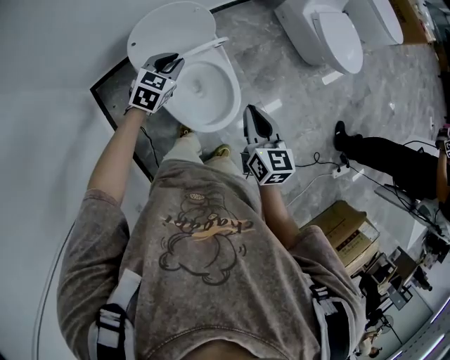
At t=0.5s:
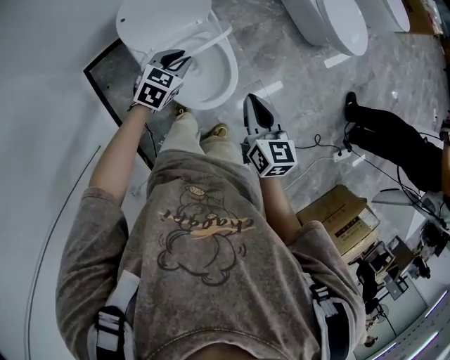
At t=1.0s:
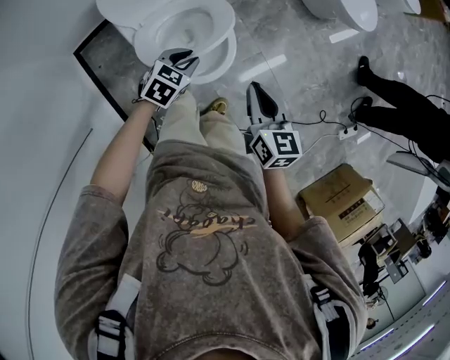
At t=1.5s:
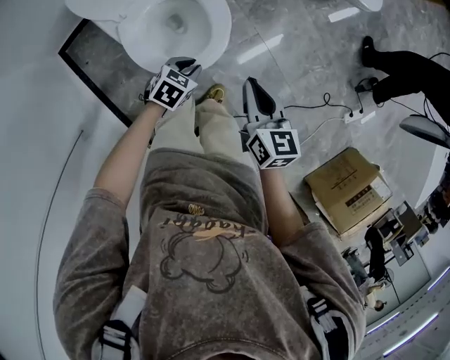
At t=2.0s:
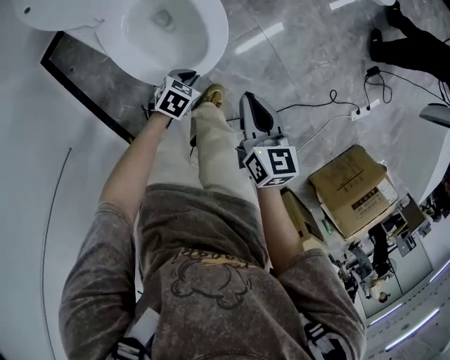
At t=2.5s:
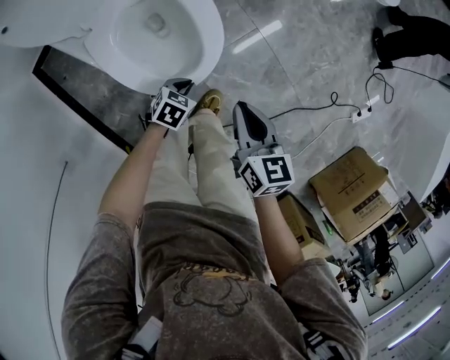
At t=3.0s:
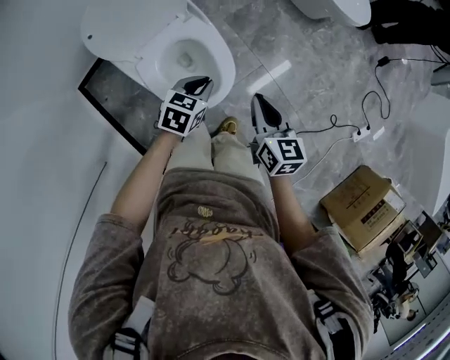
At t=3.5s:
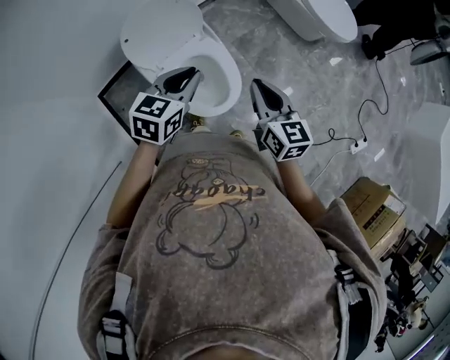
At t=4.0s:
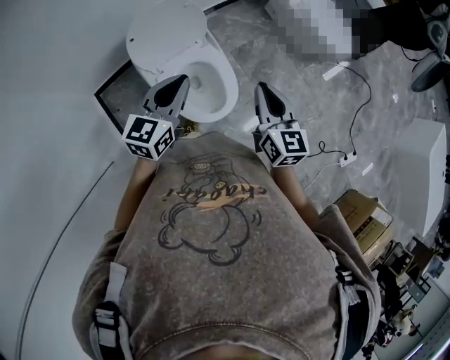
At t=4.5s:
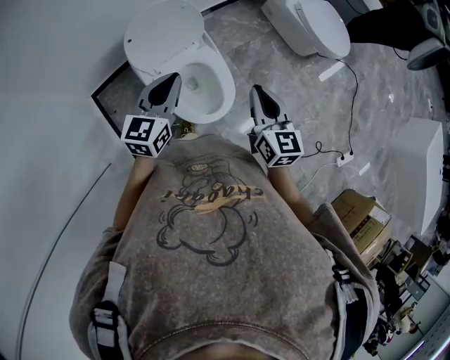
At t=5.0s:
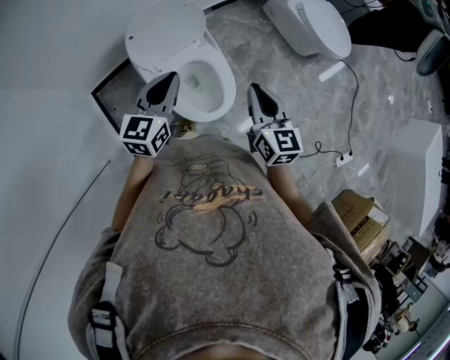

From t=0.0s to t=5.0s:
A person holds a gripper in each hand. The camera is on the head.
From t=0.0s to t=2.5s: The left gripper is displaced downward, to the right and backward by some 50 cm, and turns by roughly 40 degrees, while the right gripper heads downward, covering some 25 cm.
From t=2.5s to t=5.0s: The left gripper heads upward, covering approximately 50 cm, and tips its fingers upward by some 50 degrees, while the right gripper travels upward by some 35 cm, and turns by about 30 degrees.

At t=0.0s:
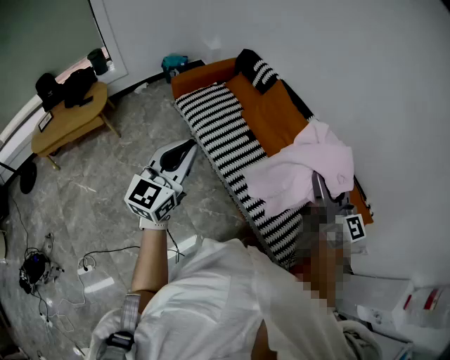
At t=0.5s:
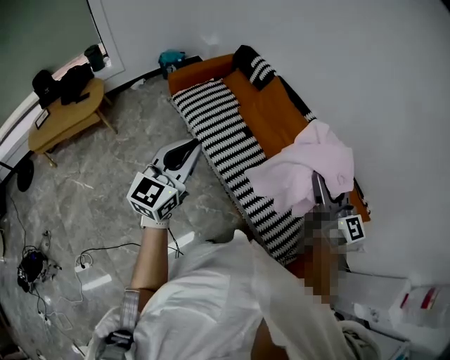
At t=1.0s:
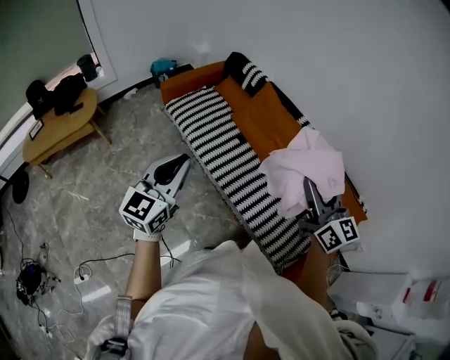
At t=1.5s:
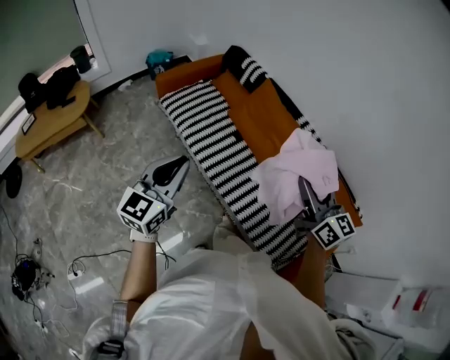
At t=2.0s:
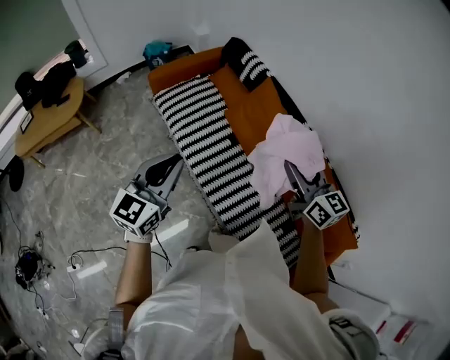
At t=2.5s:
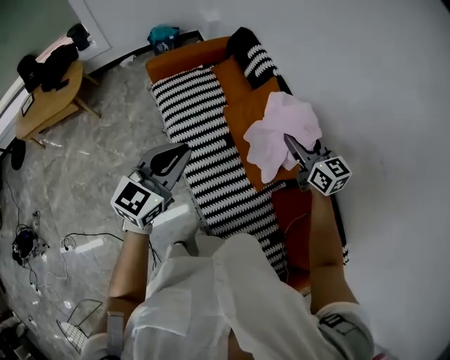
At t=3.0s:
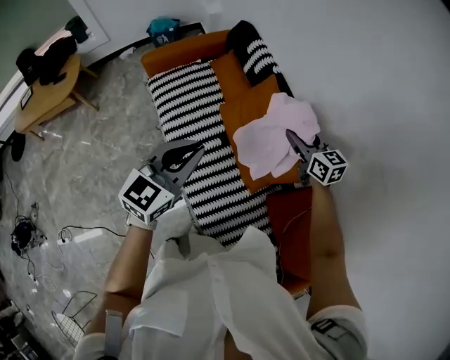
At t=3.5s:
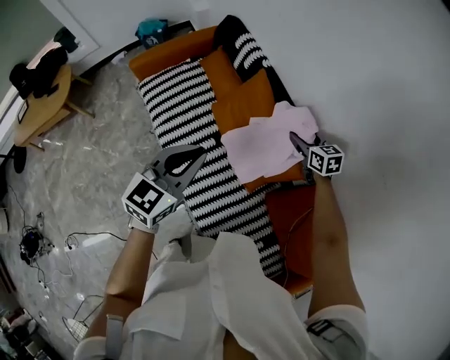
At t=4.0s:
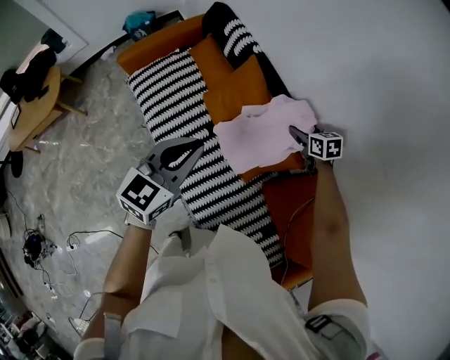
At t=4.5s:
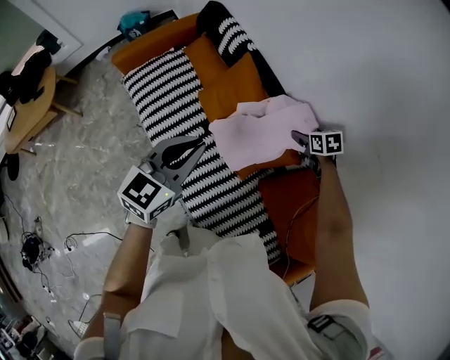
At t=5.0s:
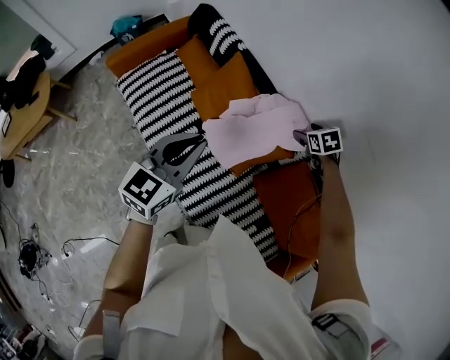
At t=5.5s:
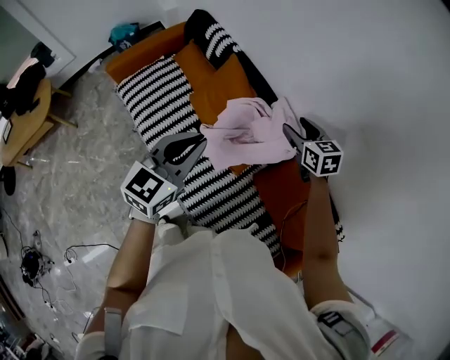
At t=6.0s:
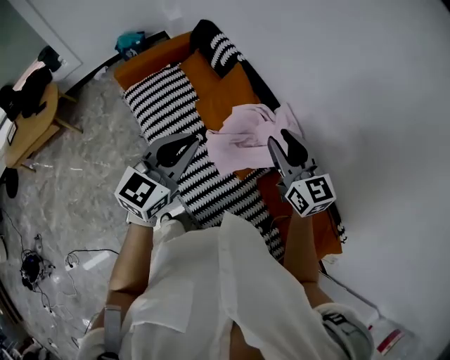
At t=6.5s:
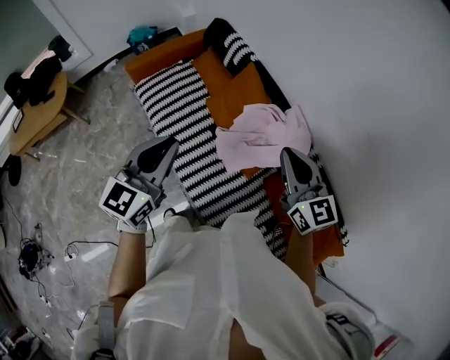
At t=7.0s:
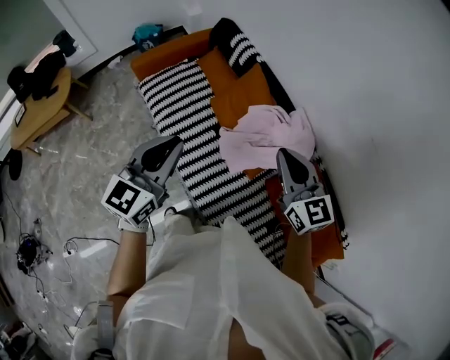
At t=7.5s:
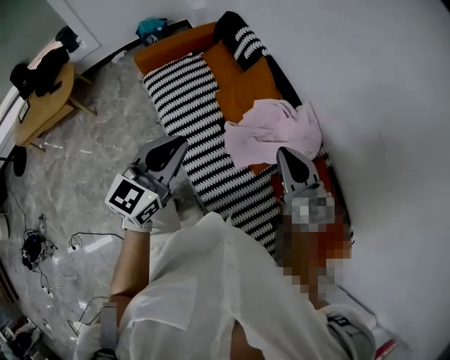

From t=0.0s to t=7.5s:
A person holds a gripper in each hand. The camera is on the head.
From t=0.0s to t=2.0s: The left gripper is displaced forward and to the right by roughly 15 cm, while the right gripper moves forward and downward, roughly 25 cm.
From t=2.0s to t=4.0s: The left gripper is displaced to the right and forward by approximately 30 cm; the right gripper travels downward, forward and to the right by about 50 cm, and points its fingers roughly 40 degrees further downward.
From t=4.0s to t=5.5s: The left gripper moves roughly 5 cm; the right gripper travels upward and backward by about 15 cm.
From t=5.5s to t=7.5s: The right gripper is displaced to the left, backward and upward by roughly 25 cm, swivels approximately 30 degrees, and closes its fingers; the left gripper shifts some 15 cm to the left and backward.

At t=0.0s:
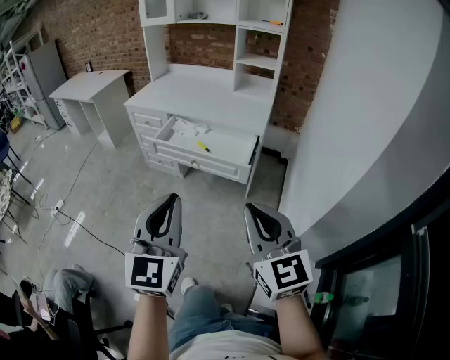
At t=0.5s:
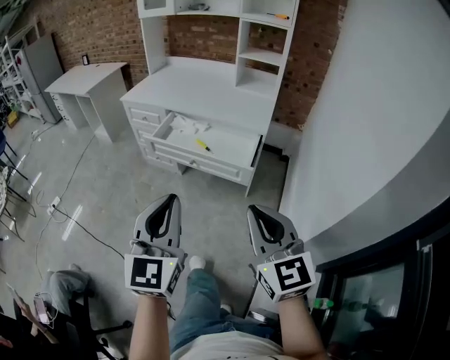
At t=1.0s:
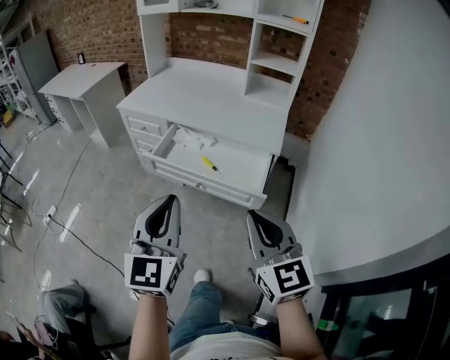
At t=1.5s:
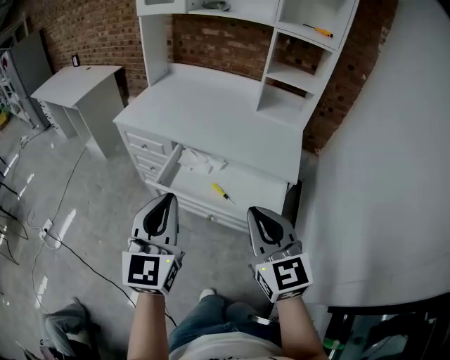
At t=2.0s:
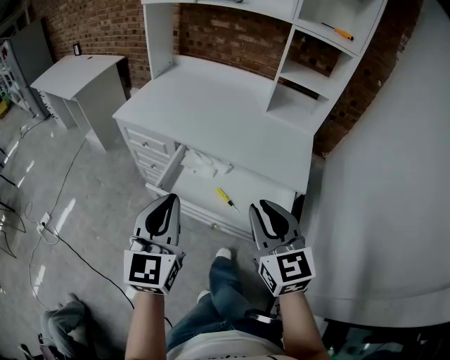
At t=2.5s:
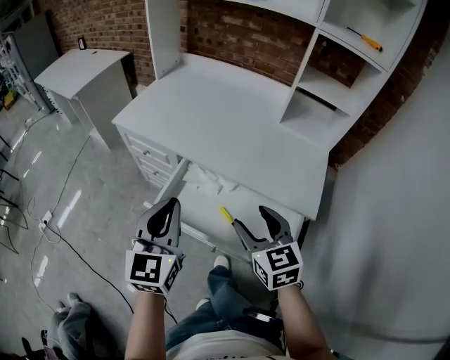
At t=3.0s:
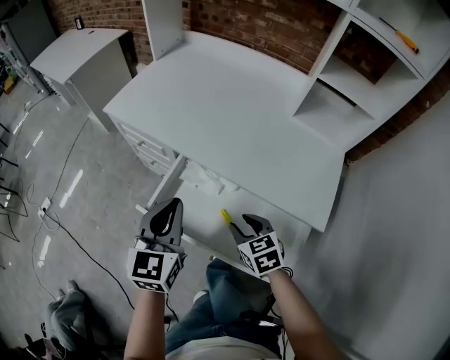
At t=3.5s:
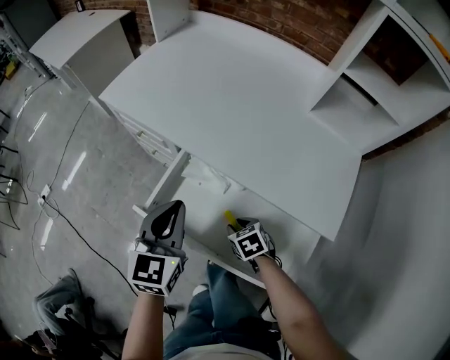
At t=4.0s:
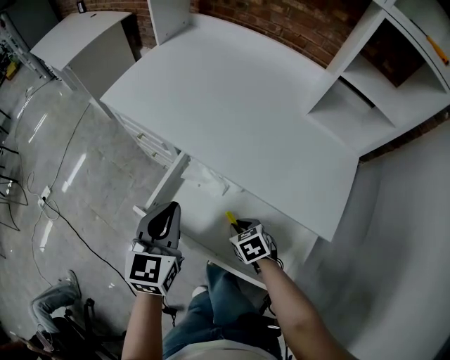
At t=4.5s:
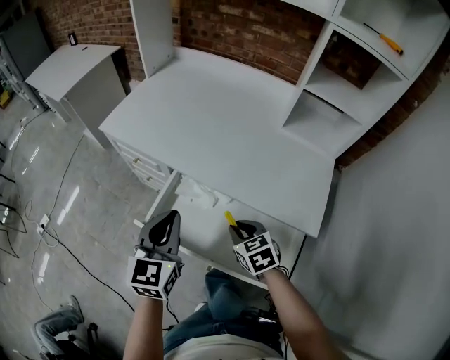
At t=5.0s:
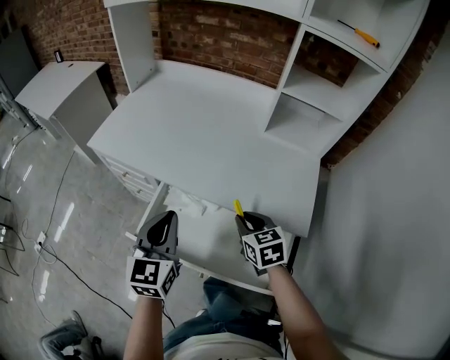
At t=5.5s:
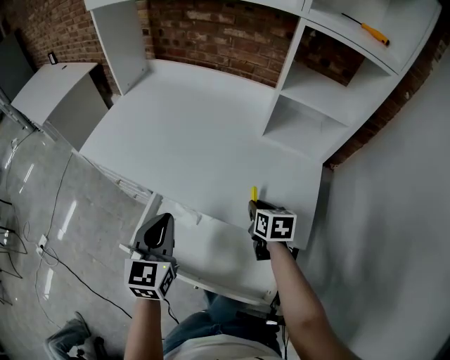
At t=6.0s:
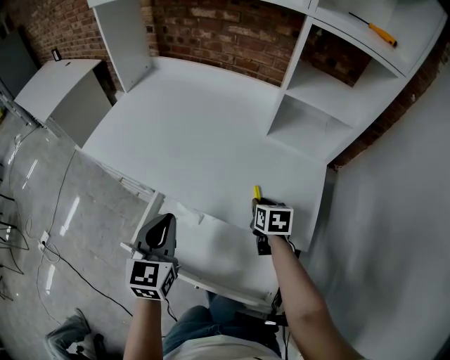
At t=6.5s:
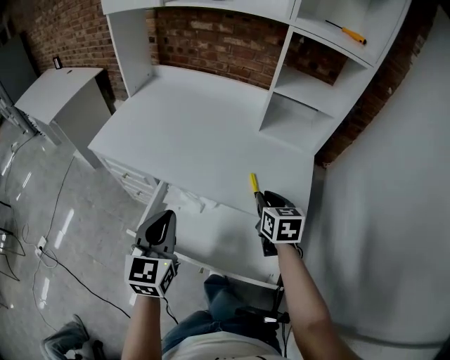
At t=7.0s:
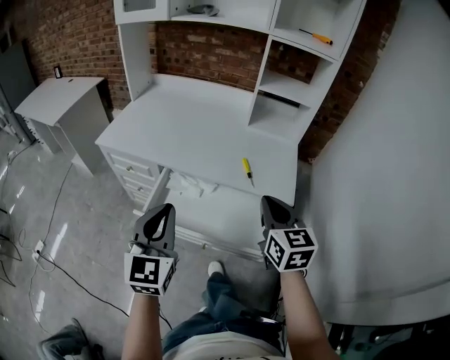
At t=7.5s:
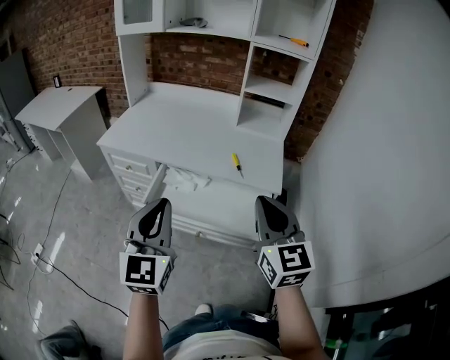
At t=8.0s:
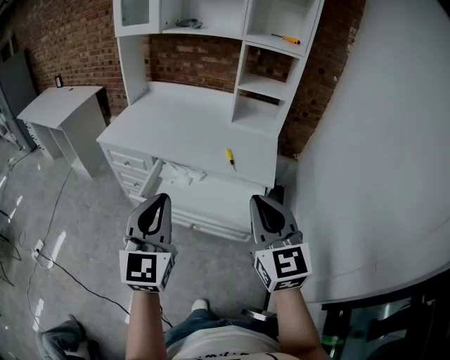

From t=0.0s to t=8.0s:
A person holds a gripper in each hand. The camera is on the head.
From t=0.0s to t=2.0s: Both grippers are carried forward, about 50 cm.
From t=2.0s to t=4.0s: The right gripper goes approximately 40 cm downward and forward, tips its fingers downward by approximately 50 degrees, and opens, then closes once more. The left gripper goes approximately 25 cm forward and downward, and rotates approximately 20 degrees.
From t=4.0s to t=6.0s: The right gripper travels to the right, forward and upward by approximately 25 cm, and swivels roughly 40 degrees; the left gripper moves to the right, roughly 10 cm.
From t=6.0s to t=8.0s: The grippers both shift backward and upward by approximately 50 cm. The left gripper turns by some 20 degrees. Meanwhile the right gripper tips its fingers upward by approximately 50 degrees.

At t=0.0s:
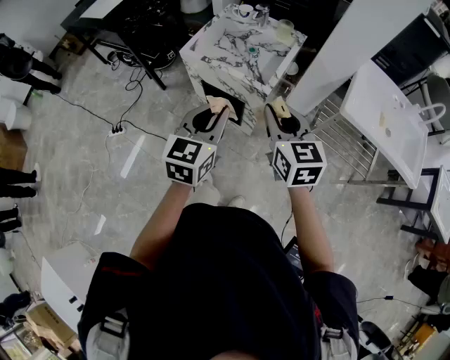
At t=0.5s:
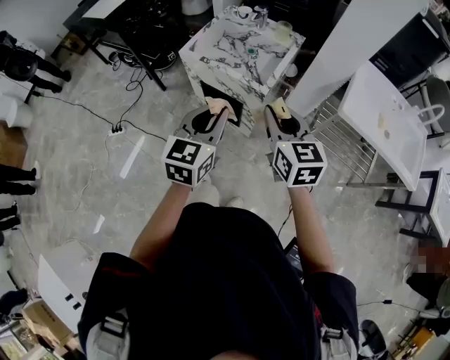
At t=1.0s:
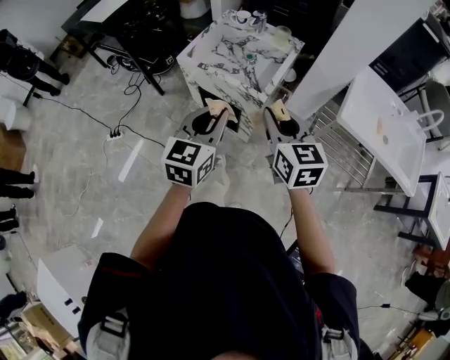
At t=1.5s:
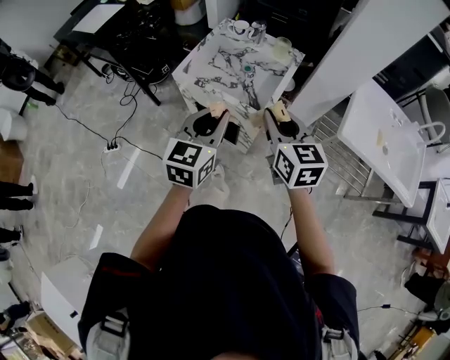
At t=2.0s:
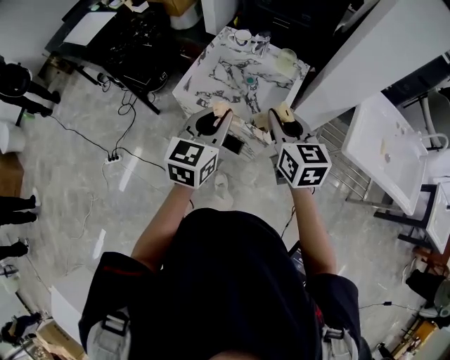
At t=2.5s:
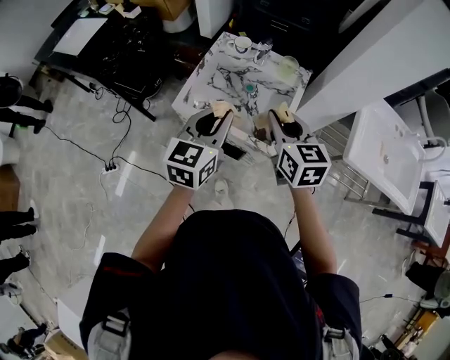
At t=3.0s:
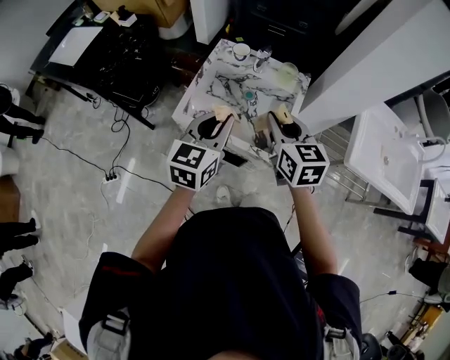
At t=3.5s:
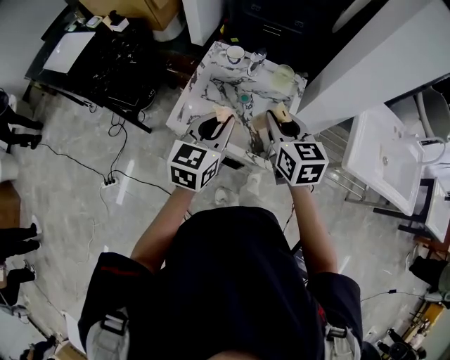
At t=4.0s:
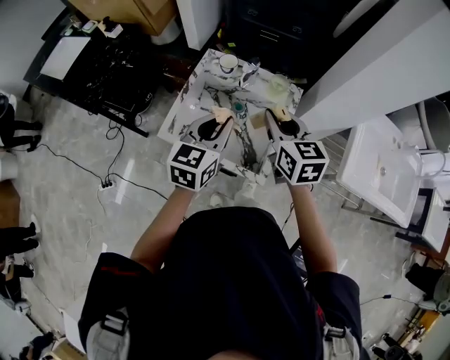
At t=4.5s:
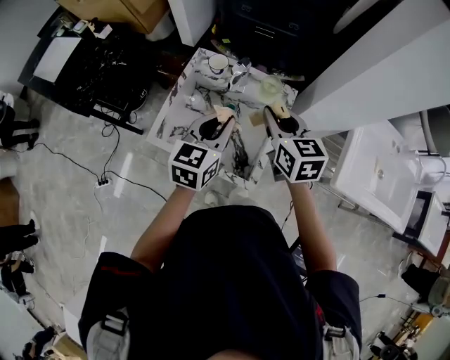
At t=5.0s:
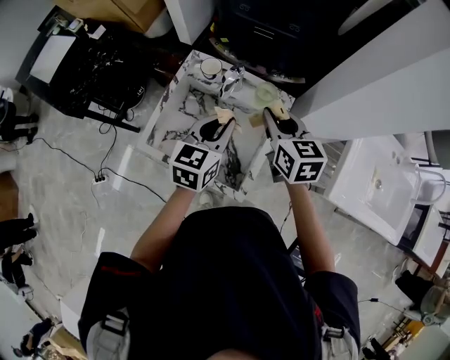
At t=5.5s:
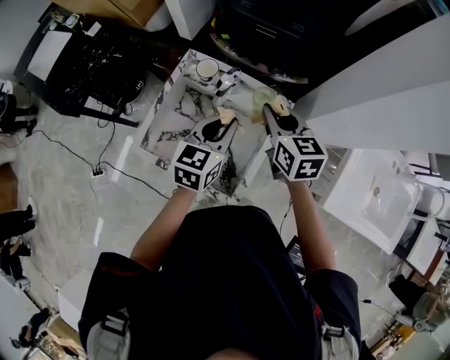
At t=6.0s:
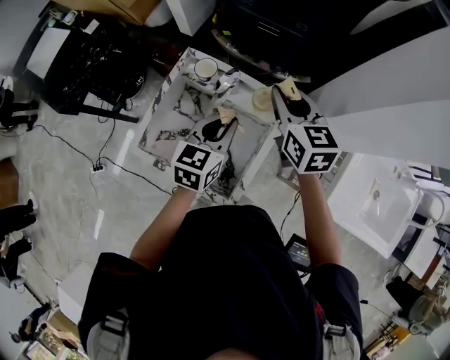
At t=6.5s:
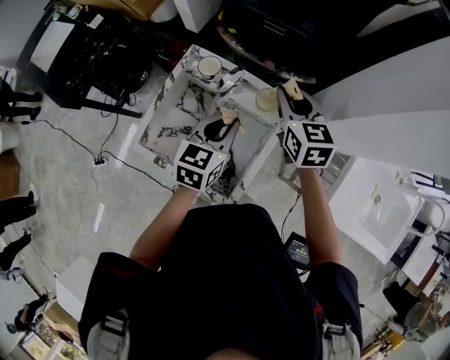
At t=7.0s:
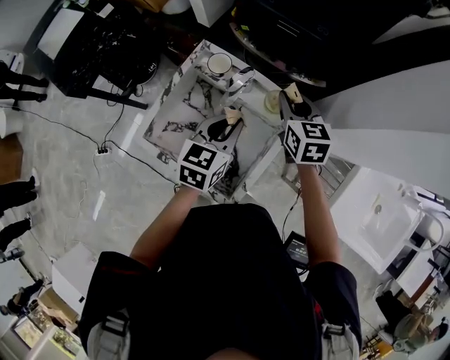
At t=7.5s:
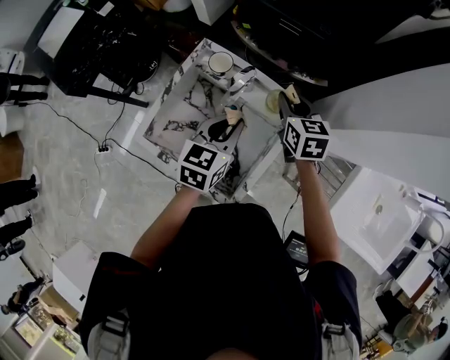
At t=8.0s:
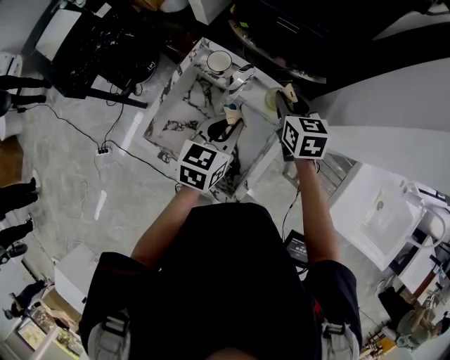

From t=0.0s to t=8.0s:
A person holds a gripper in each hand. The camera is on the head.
From t=0.0s to t=2.0s: The two grippers go approximately 20 cm forward.
From t=2.0s to t=4.0s: The grippers both shift forward by some 15 cm.
From t=4.0s to t=6.0s: The right gripper goes about 20 cm forward. The left gripper heads forward, to the right and downward, covering some 15 cm.
From t=6.0s to t=8.0s: The right gripper shifts some 10 cm downward.
